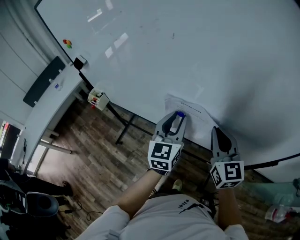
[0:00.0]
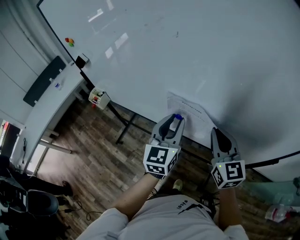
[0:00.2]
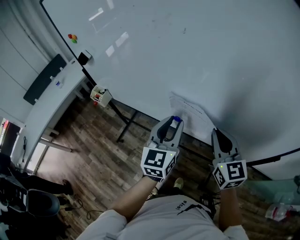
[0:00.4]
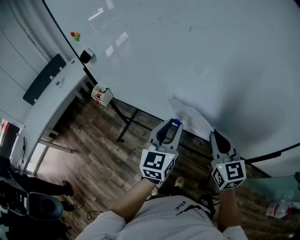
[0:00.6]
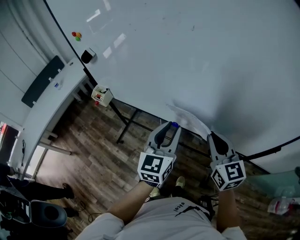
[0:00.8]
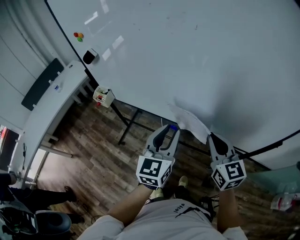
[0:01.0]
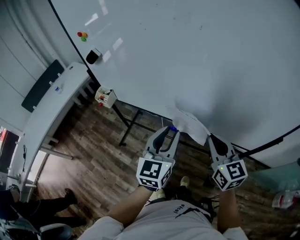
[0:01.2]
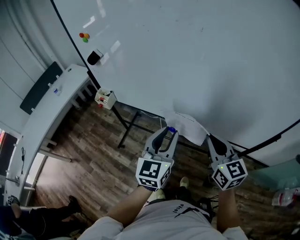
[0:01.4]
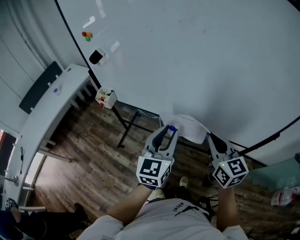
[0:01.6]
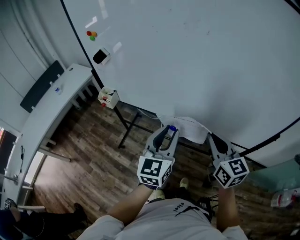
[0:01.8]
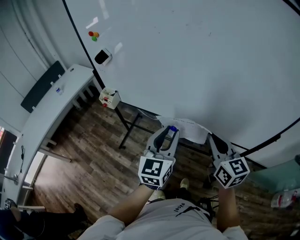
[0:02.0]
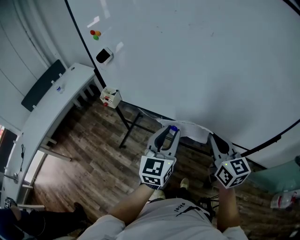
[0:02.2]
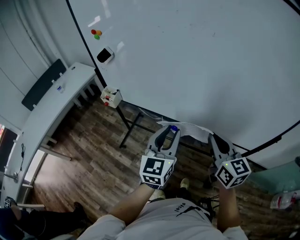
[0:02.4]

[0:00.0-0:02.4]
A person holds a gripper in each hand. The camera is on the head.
0:00.0 to 0:01.2: Both grippers move backward and to the left, approximately 15 cm.
0:01.2 to 0:02.4: There are only small adjustments of the grippers.

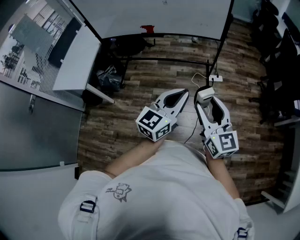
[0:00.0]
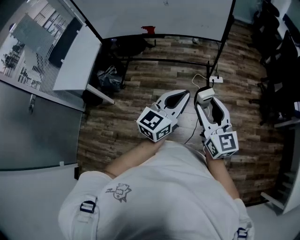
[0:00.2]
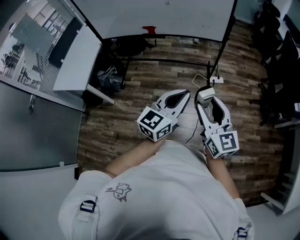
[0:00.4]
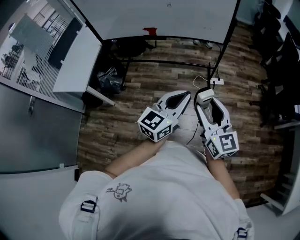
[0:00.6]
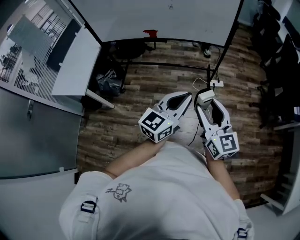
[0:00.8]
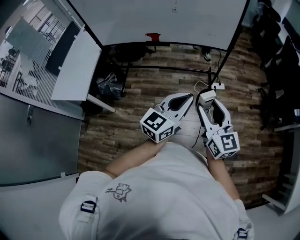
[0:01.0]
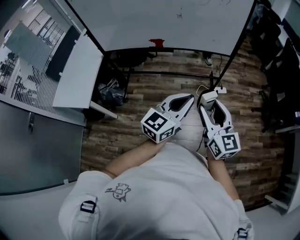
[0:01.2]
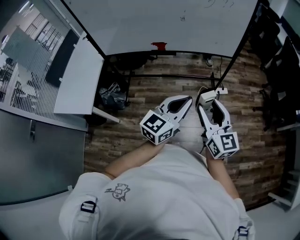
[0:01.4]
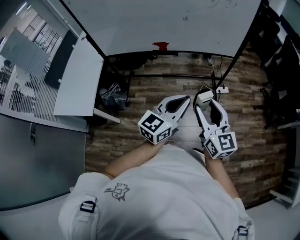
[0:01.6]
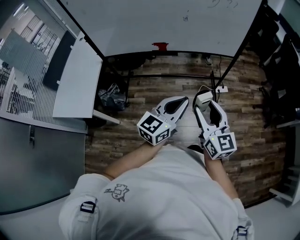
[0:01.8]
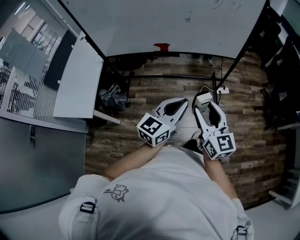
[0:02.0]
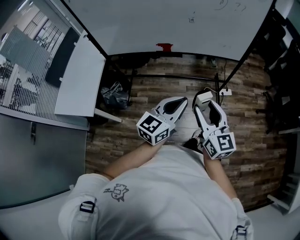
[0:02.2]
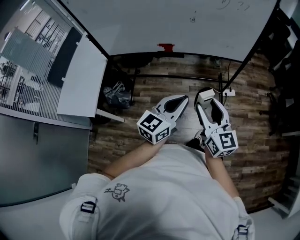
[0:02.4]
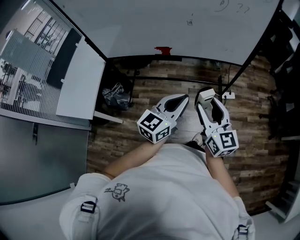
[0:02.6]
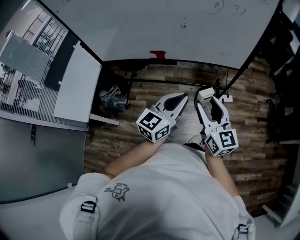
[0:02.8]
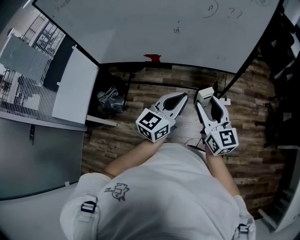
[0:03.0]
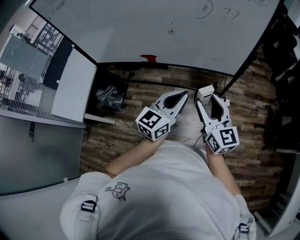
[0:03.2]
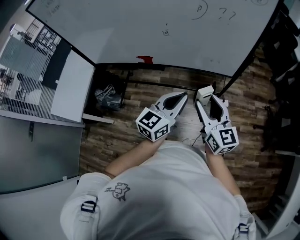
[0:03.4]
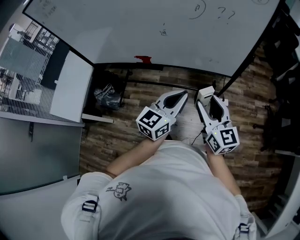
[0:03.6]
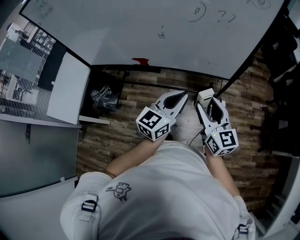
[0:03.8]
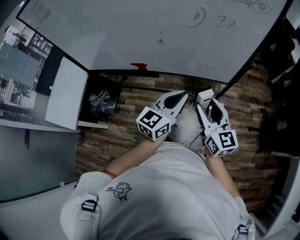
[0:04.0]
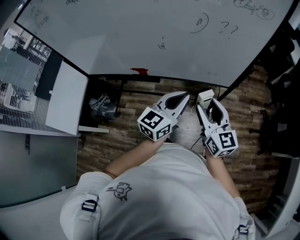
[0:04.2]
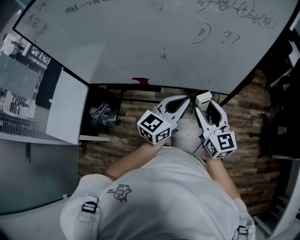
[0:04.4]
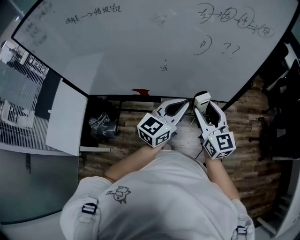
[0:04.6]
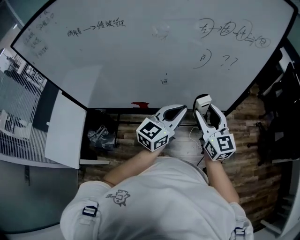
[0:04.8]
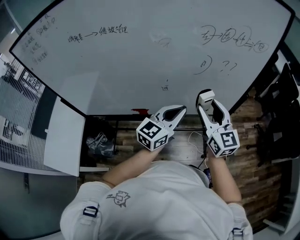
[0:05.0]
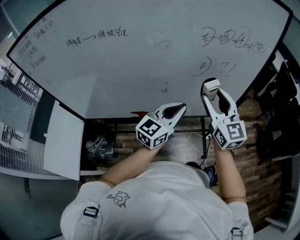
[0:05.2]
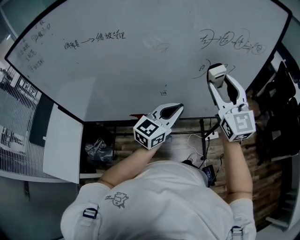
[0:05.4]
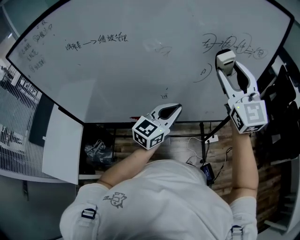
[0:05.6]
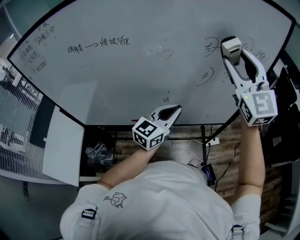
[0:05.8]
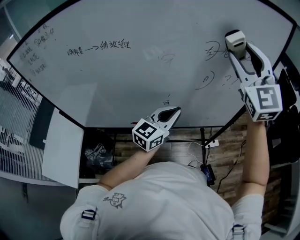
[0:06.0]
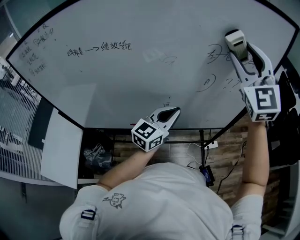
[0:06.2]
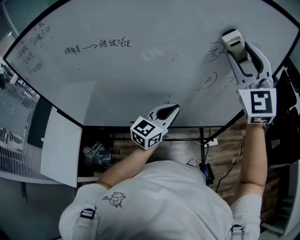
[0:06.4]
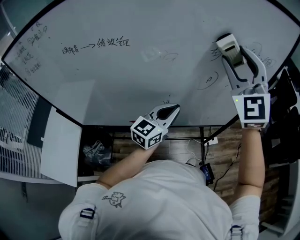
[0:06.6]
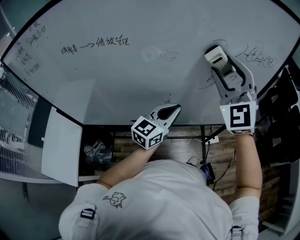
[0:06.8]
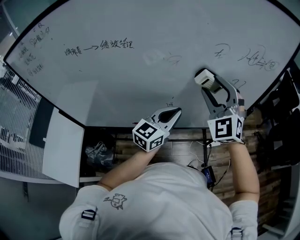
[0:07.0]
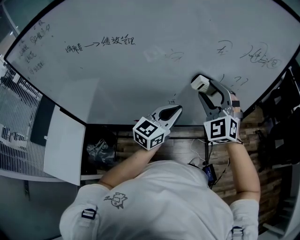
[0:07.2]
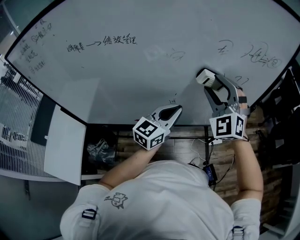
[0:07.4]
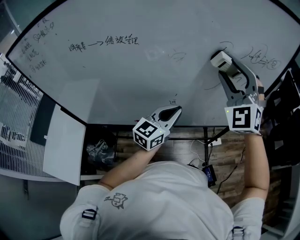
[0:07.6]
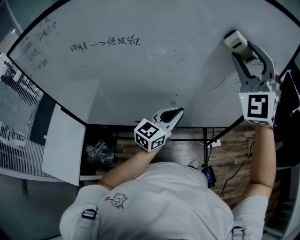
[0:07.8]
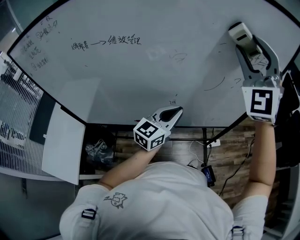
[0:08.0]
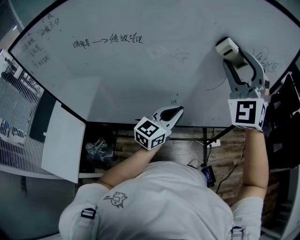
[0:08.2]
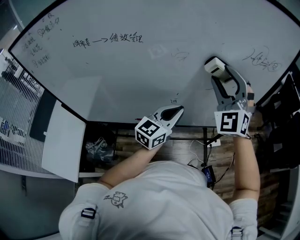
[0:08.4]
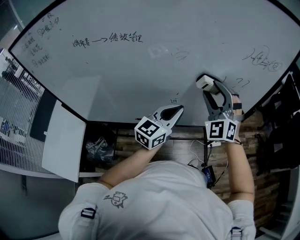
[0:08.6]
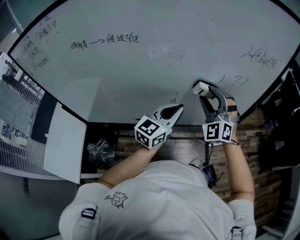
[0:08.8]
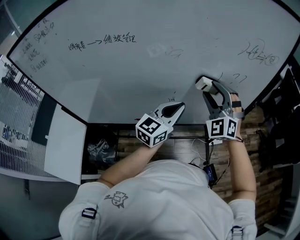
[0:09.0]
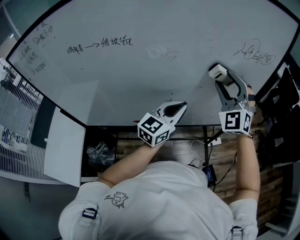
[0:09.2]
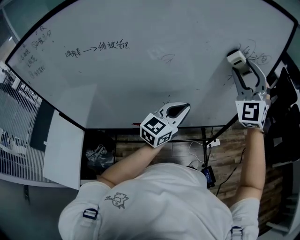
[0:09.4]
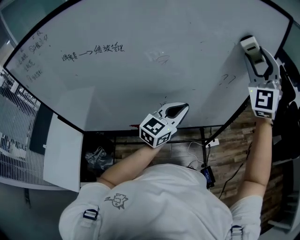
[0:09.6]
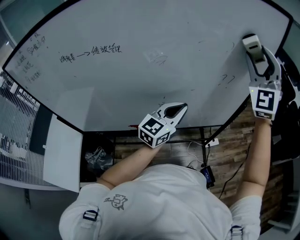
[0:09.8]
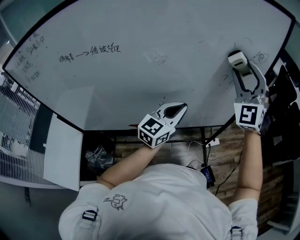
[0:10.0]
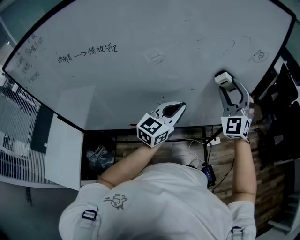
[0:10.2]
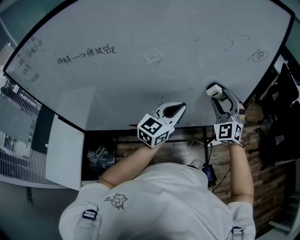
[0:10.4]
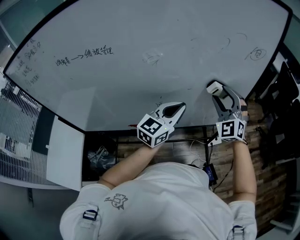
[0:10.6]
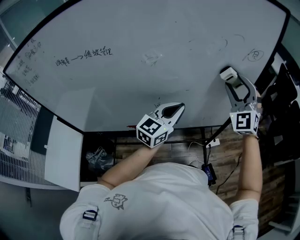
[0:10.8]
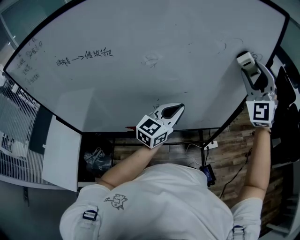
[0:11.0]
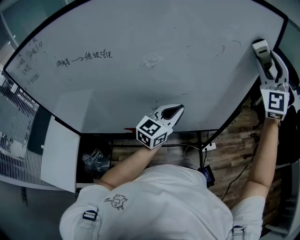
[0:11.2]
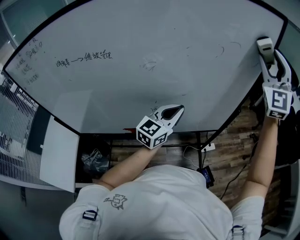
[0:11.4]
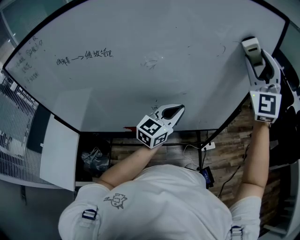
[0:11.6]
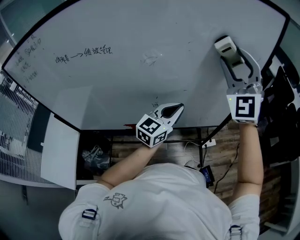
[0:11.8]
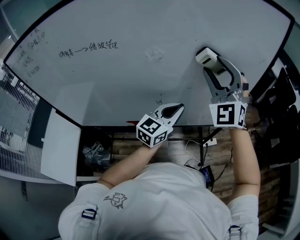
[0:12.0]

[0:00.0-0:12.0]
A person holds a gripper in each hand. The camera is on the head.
0:00.0 to 0:01.6: Both grippers travel together to the left and forward, roughly 25 cm.
0:01.6 to 0:03.0: The grippers both shift forward by roughly 20 cm.
0:03.0 to 0:04.4: The grippers both shift forward by some 15 cm.
0:04.4 to 0:06.0: The left gripper heads forward and to the left, covering some 15 cm. The right gripper is displaced upward and forward by approximately 40 cm, and rolls counterclockwise, seen from behind, by about 40 degrees.
0:06.0 to 0:07.6: The right gripper is displaced downward and to the left by roughly 10 cm, and turns by approximately 30 degrees.
0:07.6 to 0:09.0: The right gripper shifts roughly 15 cm downward.
0:09.0 to 0:10.4: The right gripper goes some 10 cm to the right, and moves about 20 cm upward and comes back; the left gripper moves some 5 cm.
0:10.4 to 0:12.0: The right gripper moves upward, approximately 15 cm.

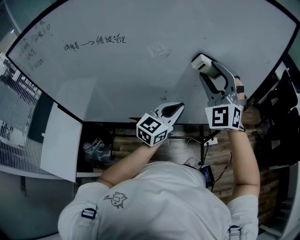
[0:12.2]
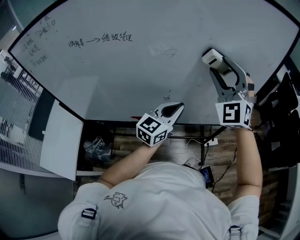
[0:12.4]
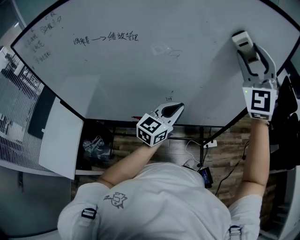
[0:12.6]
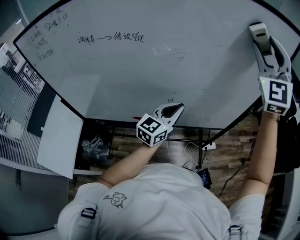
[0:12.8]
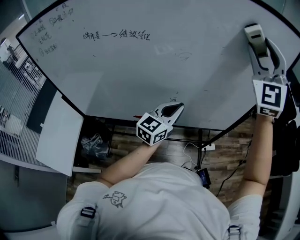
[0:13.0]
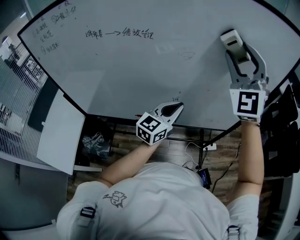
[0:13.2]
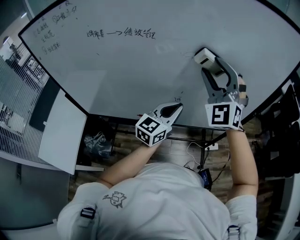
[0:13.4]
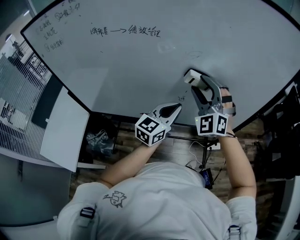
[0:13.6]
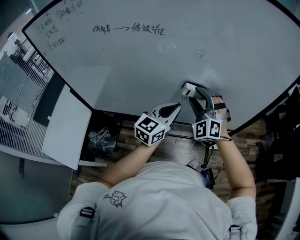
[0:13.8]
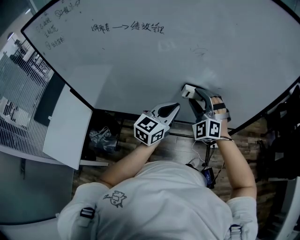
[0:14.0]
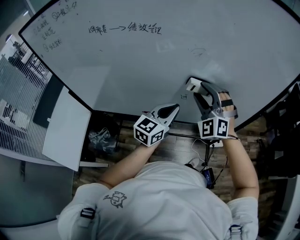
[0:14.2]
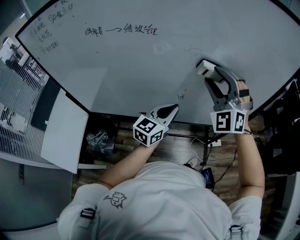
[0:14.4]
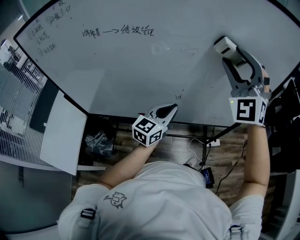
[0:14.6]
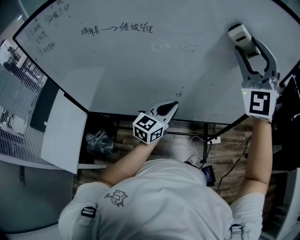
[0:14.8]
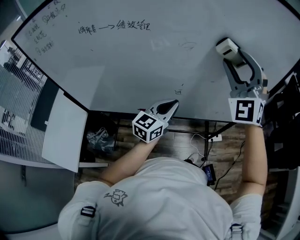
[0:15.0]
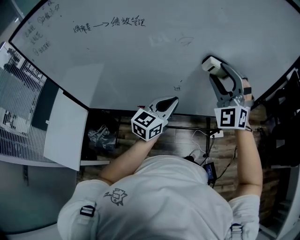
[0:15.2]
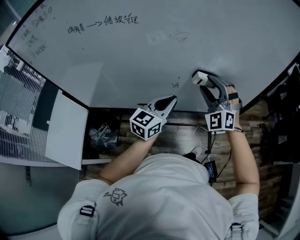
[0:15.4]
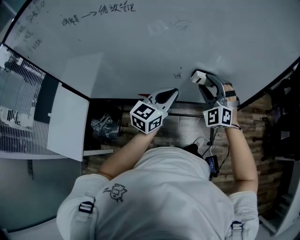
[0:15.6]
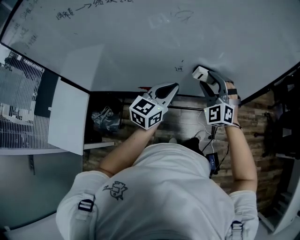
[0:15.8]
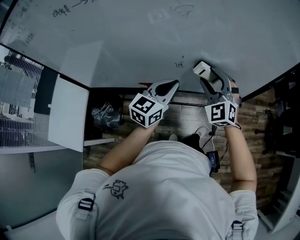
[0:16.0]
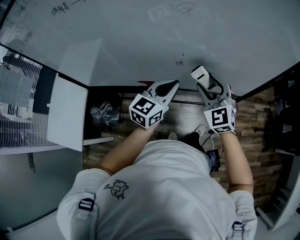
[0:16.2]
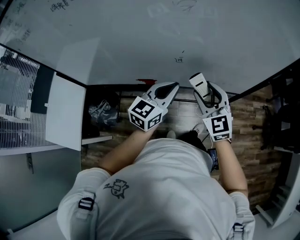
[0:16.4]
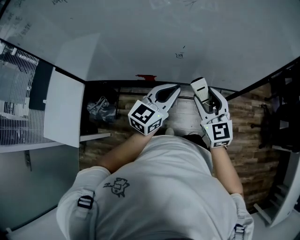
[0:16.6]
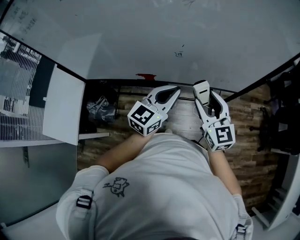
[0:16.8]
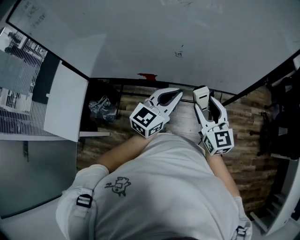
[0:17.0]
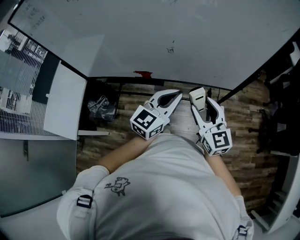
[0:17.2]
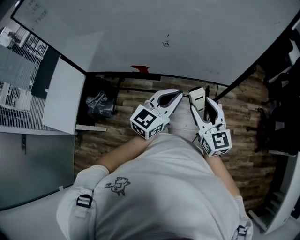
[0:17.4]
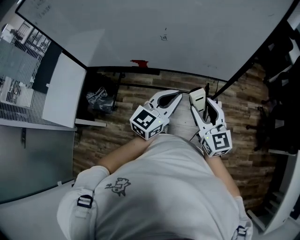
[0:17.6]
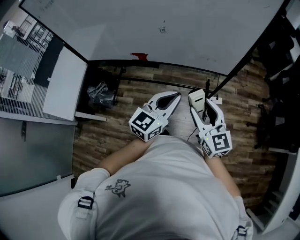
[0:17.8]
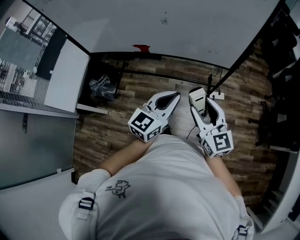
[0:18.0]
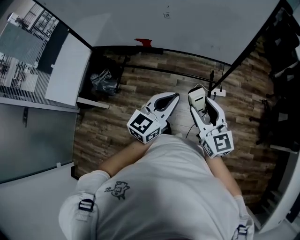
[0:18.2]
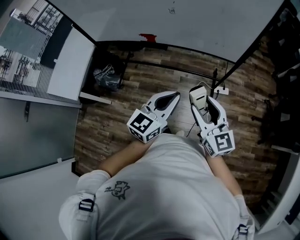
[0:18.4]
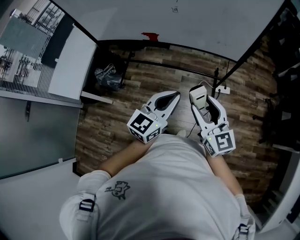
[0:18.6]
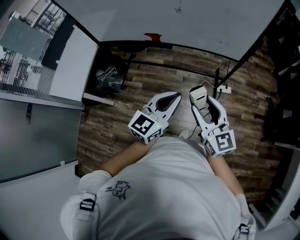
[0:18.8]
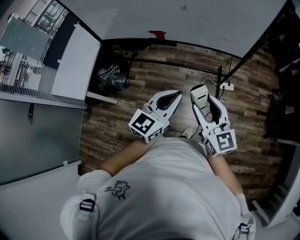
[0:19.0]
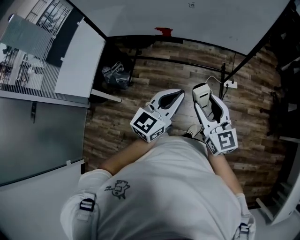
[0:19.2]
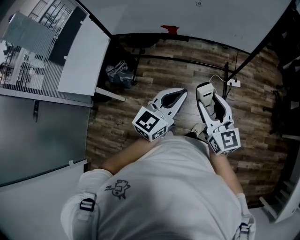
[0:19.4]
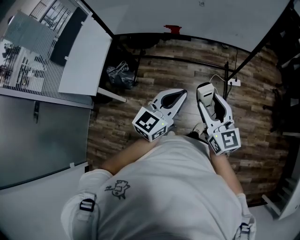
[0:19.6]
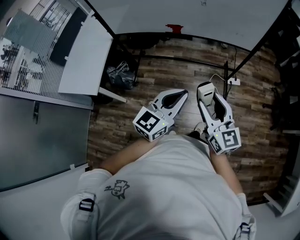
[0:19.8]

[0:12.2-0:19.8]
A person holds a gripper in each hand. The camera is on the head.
0:12.2 to 0:13.8: The right gripper goes roughly 20 cm downward and to the left; the left gripper heads to the left, covering roughly 10 cm.
0:13.8 to 0:15.2: The right gripper moves to the right, roughly 10 cm, and reaches some 25 cm upward, then returns.
0:15.2 to 0:16.8: The left gripper moves backward, some 5 cm; the right gripper travels downward and backward by roughly 20 cm, and rolls clockwise, seen from behind, by approximately 60 degrees.
0:16.8 to 0:18.2: Both grippers move backward and to the right, approximately 25 cm.
0:18.2 to 0:19.8: Both grippers move to the left and backward, approximately 25 cm.

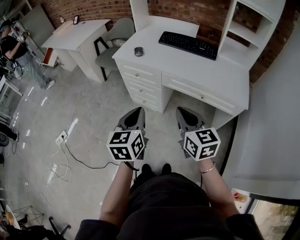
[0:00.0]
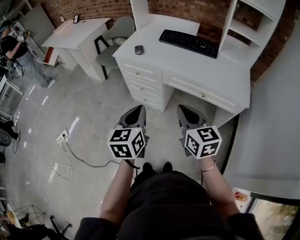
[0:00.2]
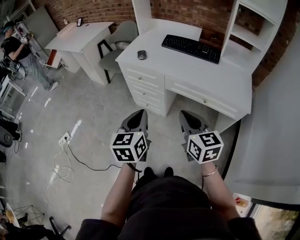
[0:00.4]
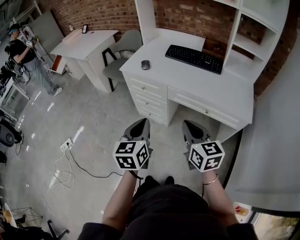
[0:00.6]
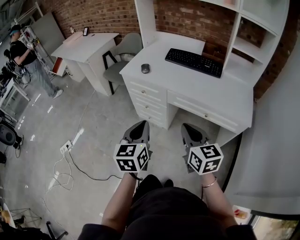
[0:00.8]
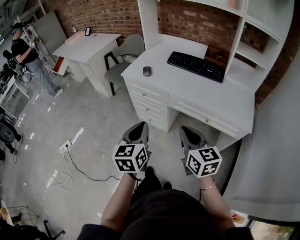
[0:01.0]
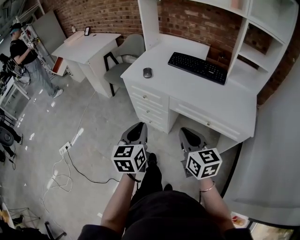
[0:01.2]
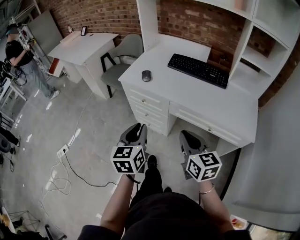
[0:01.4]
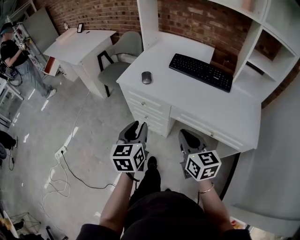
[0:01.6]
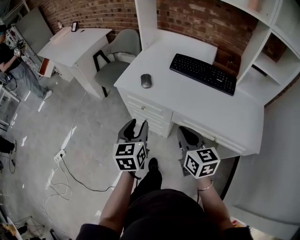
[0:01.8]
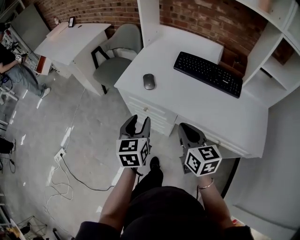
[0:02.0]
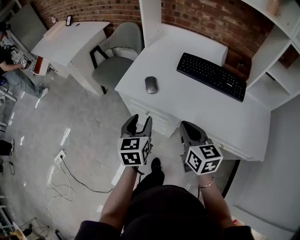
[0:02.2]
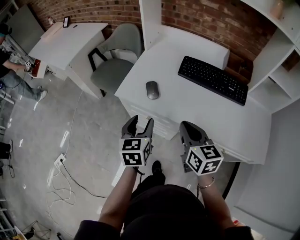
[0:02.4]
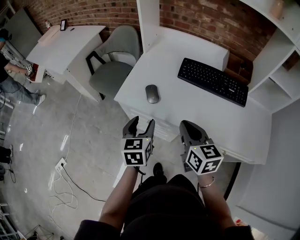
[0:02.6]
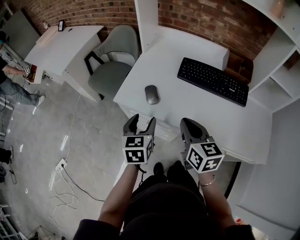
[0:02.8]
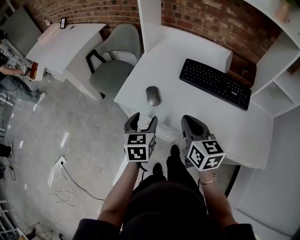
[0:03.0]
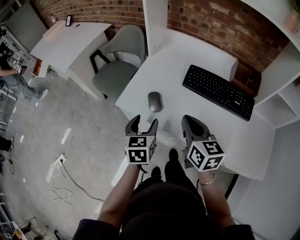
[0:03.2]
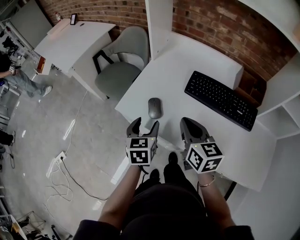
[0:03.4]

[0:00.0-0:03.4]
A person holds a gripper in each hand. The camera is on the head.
0:00.0 to 0:01.6: Both grippers travel together forward, roughly 15 cm.
0:01.6 to 0:03.4: Both grippers travel together forward, approximately 30 cm. The left gripper opens.
